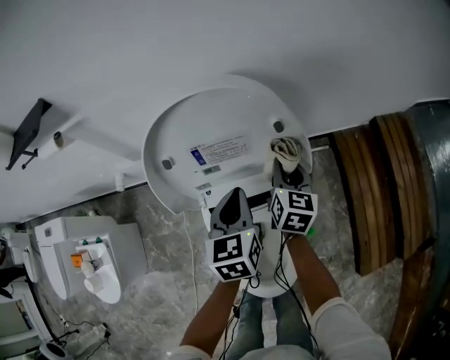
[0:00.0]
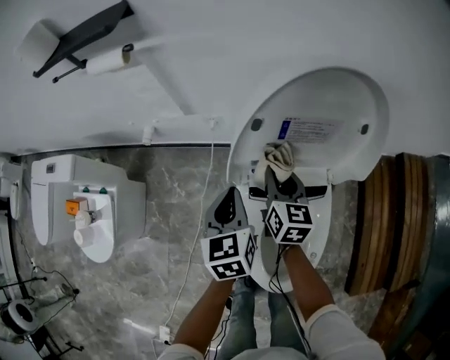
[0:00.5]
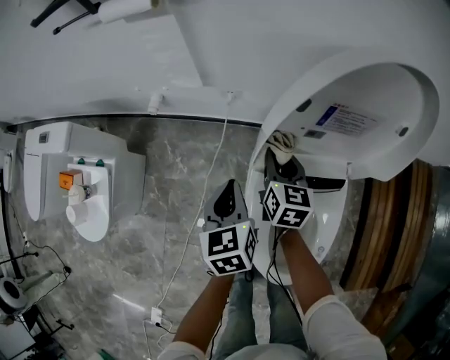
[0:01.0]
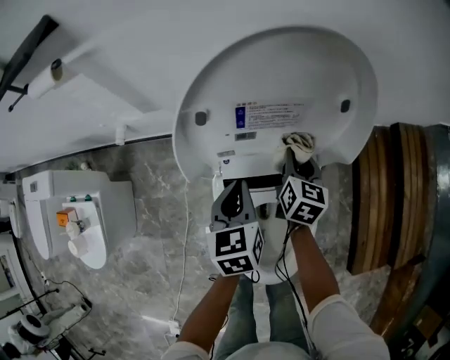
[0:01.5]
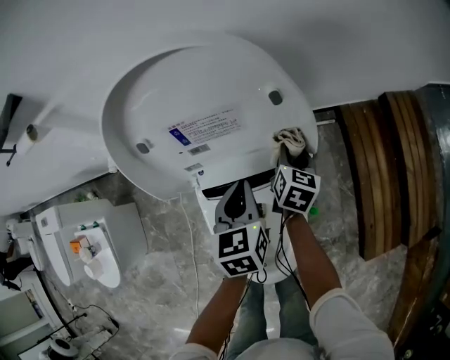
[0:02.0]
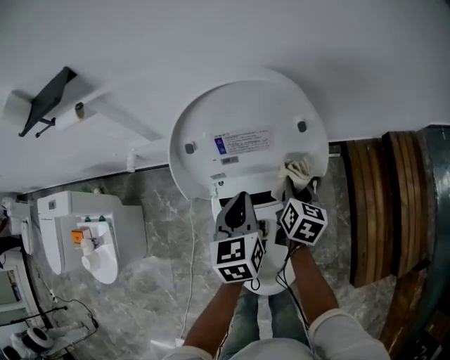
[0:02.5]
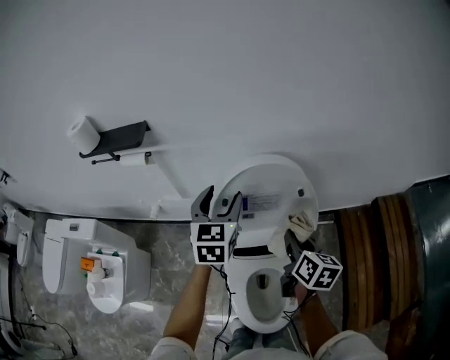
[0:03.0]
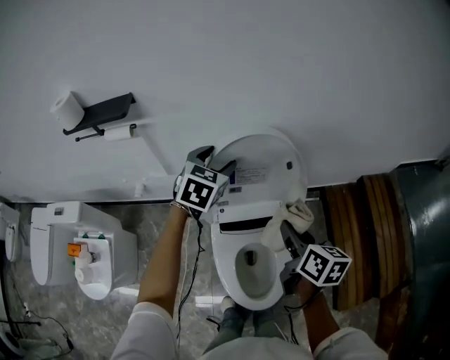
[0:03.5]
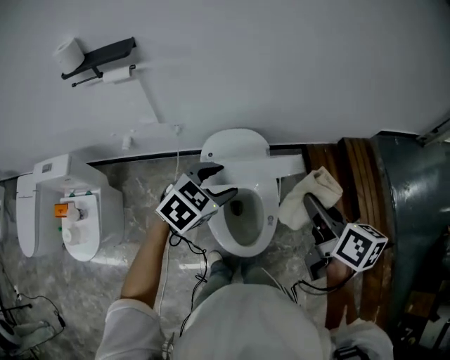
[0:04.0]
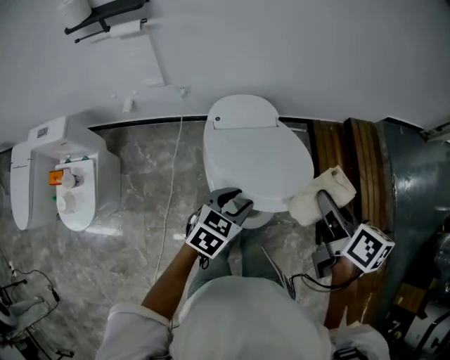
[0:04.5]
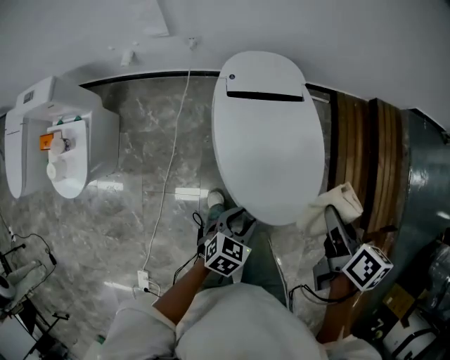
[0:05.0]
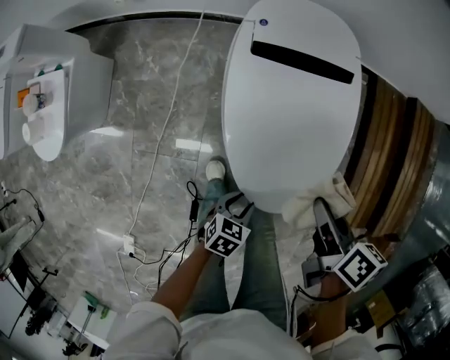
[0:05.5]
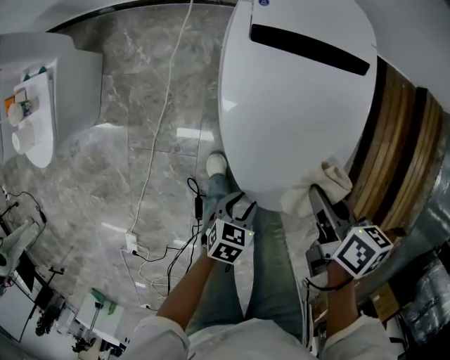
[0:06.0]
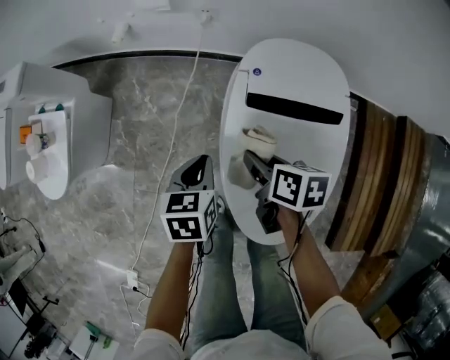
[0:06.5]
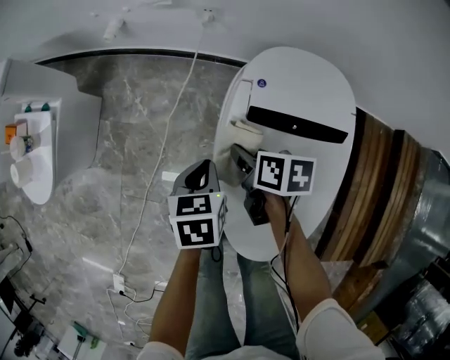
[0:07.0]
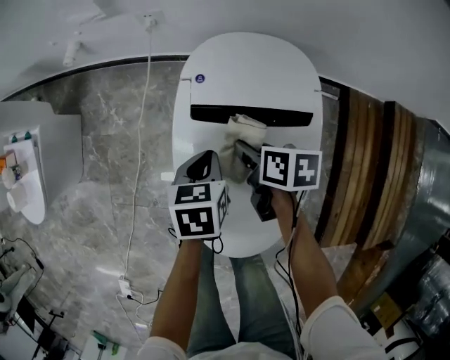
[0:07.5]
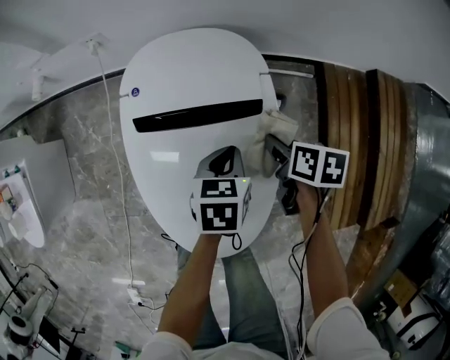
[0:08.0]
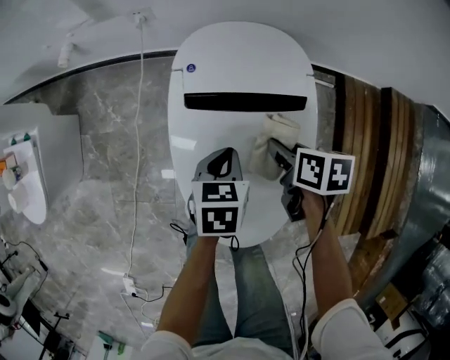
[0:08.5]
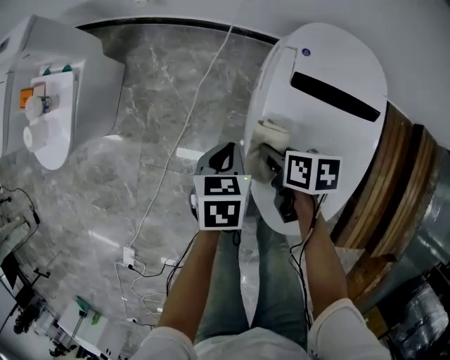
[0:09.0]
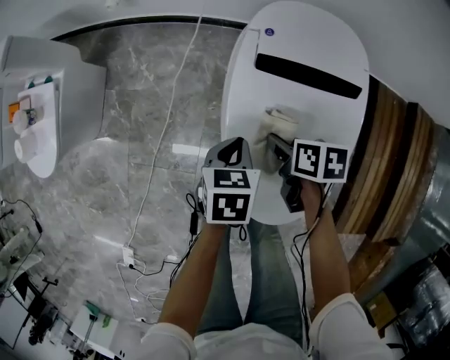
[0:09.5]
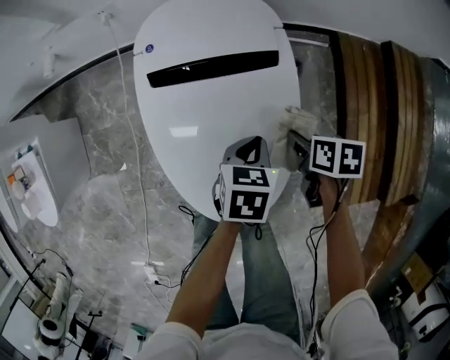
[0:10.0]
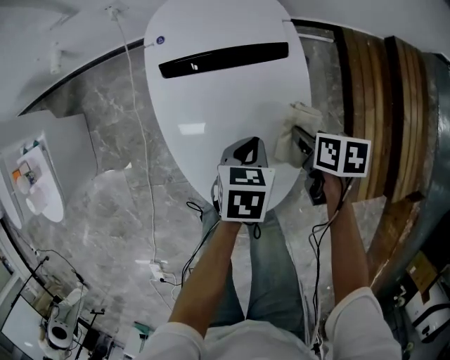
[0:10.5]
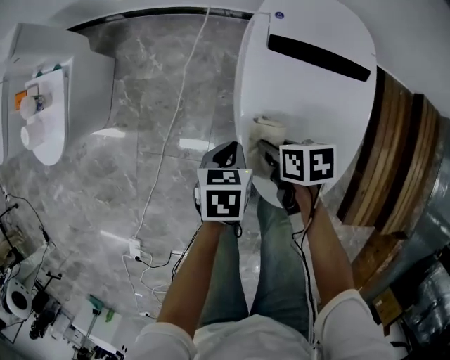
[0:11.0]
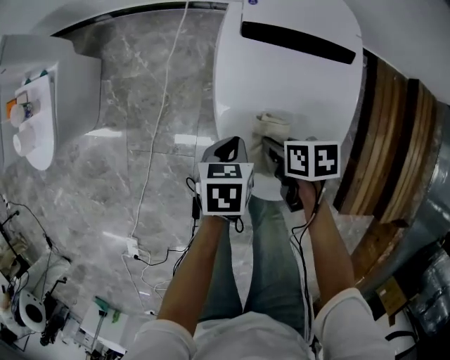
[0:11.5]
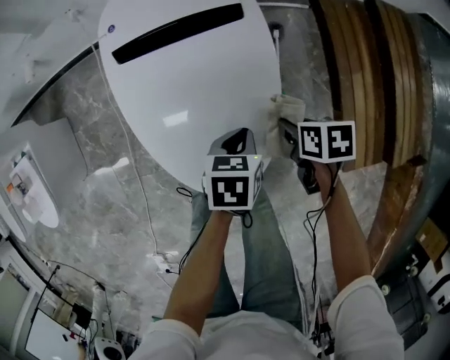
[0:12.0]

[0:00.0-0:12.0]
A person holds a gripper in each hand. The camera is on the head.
0:00.0 to 0:02.0: The left gripper is displaced downward by about 5 cm, and goes to the left and returns, approximately 25 cm each way. The right gripper shifts roughly 10 cm downward, and travels to the left and back again, about 30 cm each way.
0:02.0 to 0:04.0: The right gripper goes about 50 cm upward and backward, and turns by about 30 degrees. Meanwhile the left gripper moves upward and backward, roughly 30 cm, rotates approximately 50 degrees, and opens its fingers.
0:04.0 to 0:06.0: The left gripper shifts roughly 50 cm downward and backward, rolls counterclockwise, seen from behind, by some 50 degrees, and closes its fingers; the right gripper is displaced downward by roughly 40 cm, and turns by some 30 degrees.
0:06.0 to 0:08.0: The left gripper changes place by approximately 35 cm, and closes its fingers; the right gripper moves roughly 25 cm.

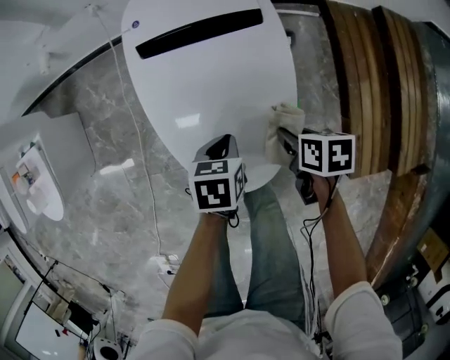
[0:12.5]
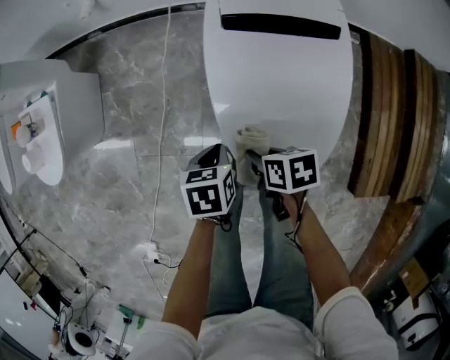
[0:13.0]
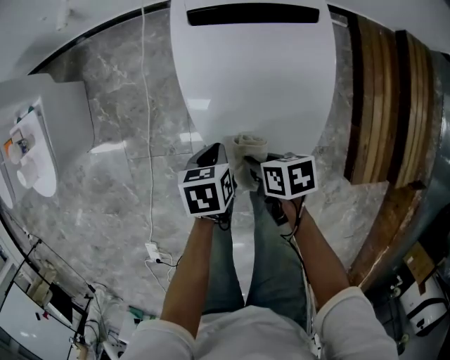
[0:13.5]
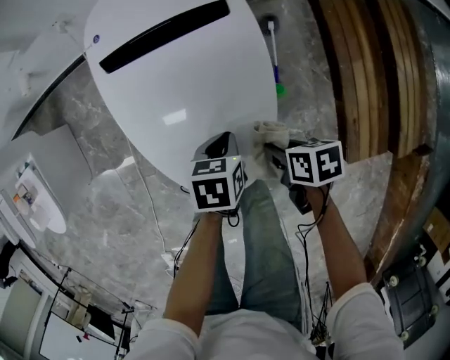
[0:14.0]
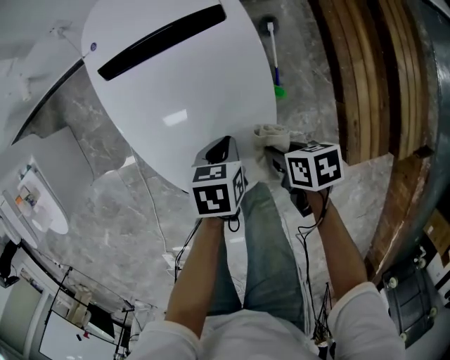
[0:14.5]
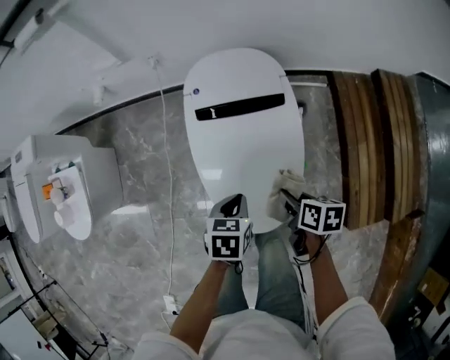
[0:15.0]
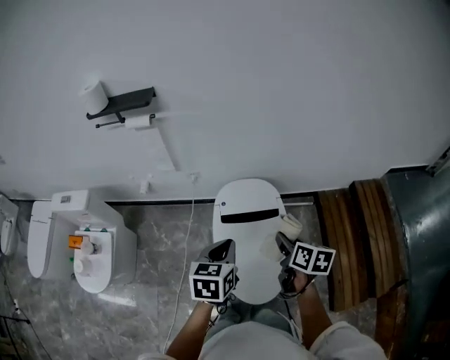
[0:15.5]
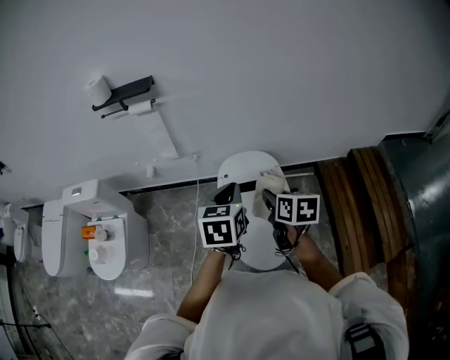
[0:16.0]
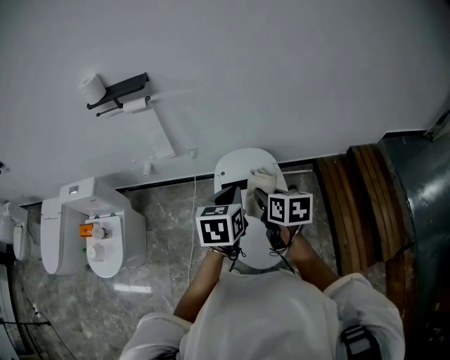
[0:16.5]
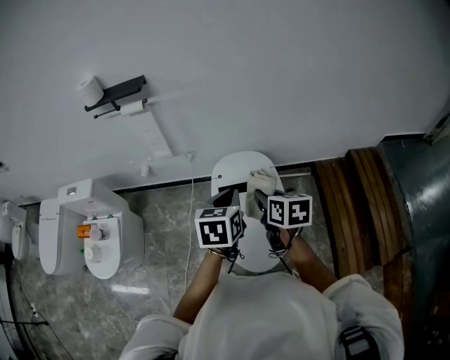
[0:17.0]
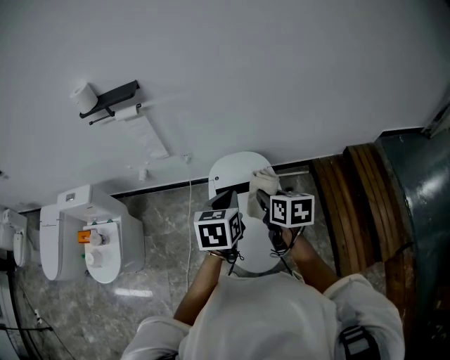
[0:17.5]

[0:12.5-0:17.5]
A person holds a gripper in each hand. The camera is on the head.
0:12.5 to 0:15.0: The left gripper goes left and right, roughly 25 cm each way, reversing 2 times. Meanwhile the right gripper swings left and right, about 25 cm each way, with 2 reversals.
0:15.0 to 0:17.5: Both grippers travel together upward, roughly 35 cm. The left gripper swivels some 30 degrees; the right gripper turns by about 30 degrees.

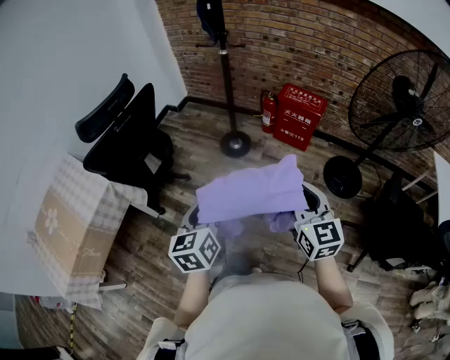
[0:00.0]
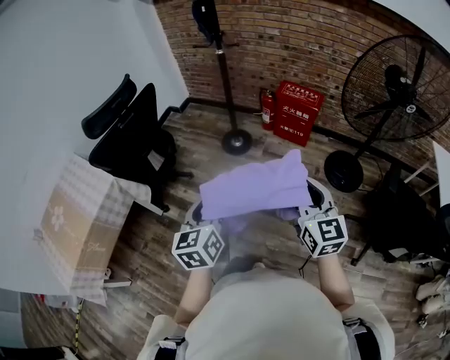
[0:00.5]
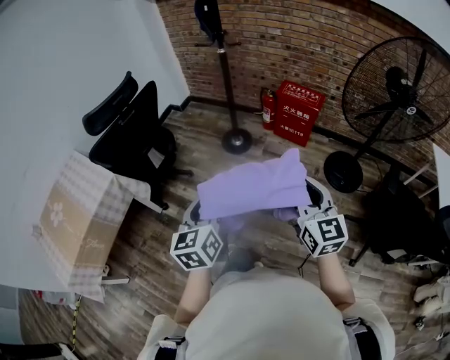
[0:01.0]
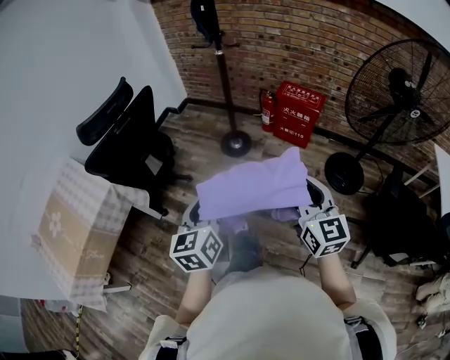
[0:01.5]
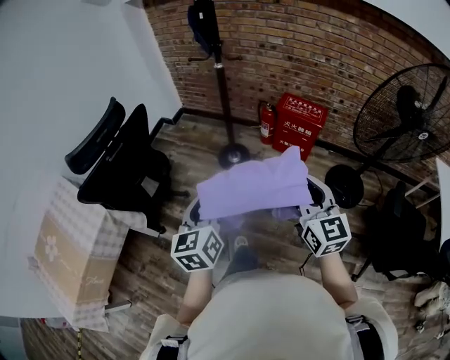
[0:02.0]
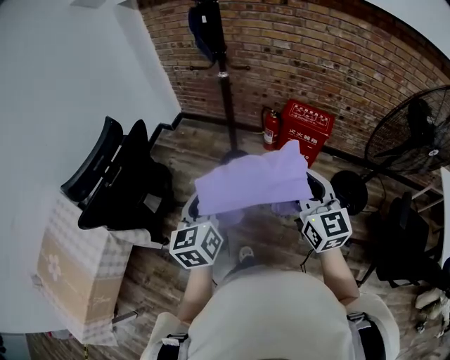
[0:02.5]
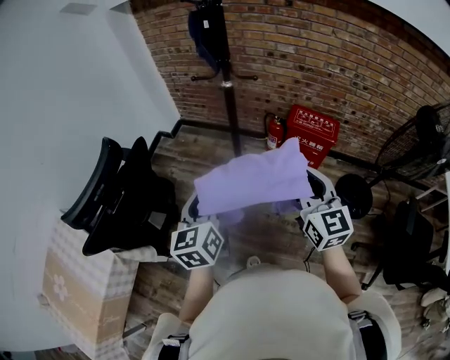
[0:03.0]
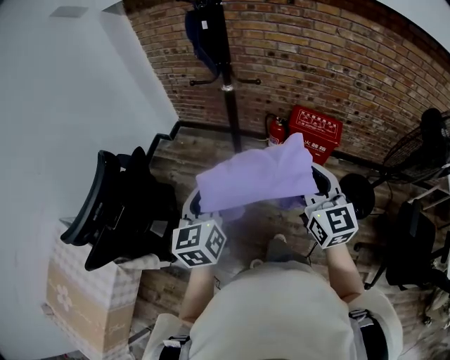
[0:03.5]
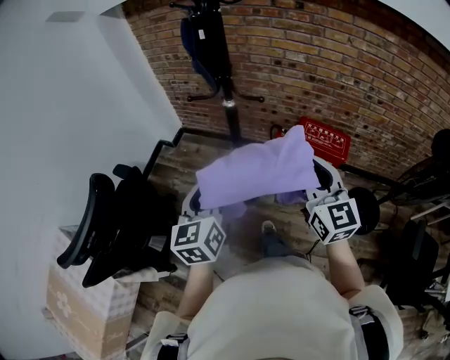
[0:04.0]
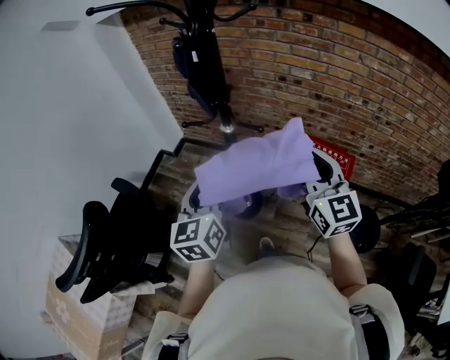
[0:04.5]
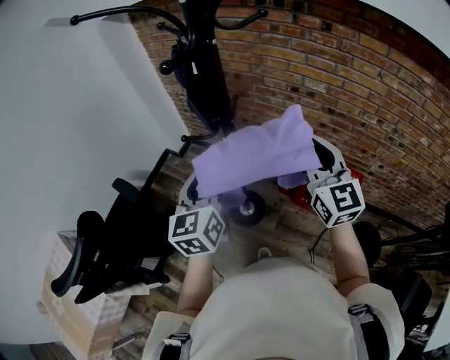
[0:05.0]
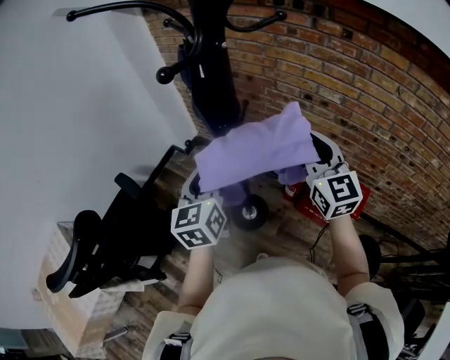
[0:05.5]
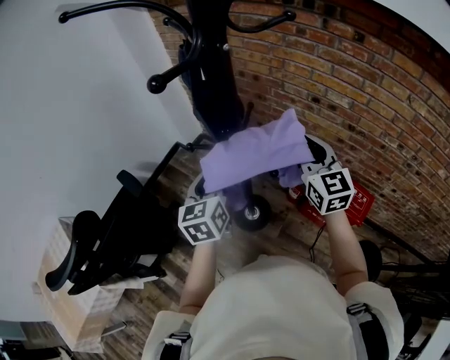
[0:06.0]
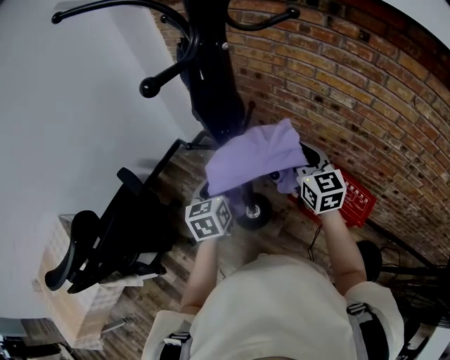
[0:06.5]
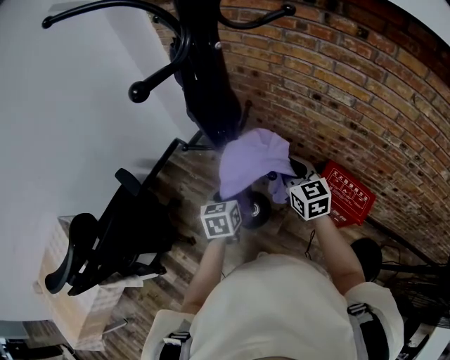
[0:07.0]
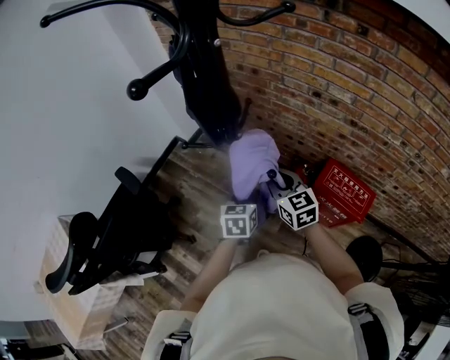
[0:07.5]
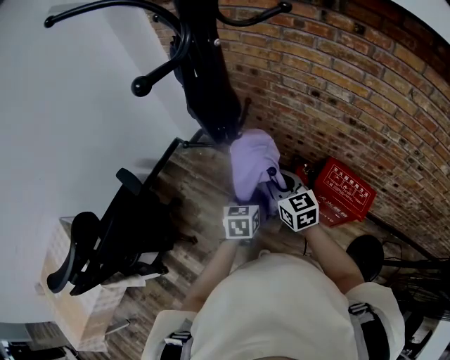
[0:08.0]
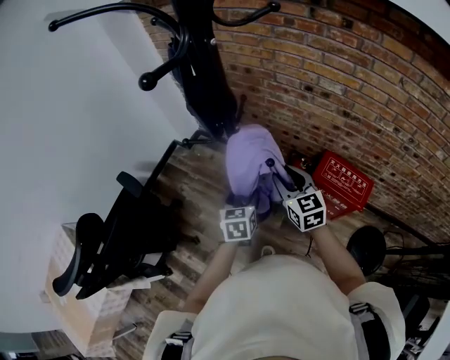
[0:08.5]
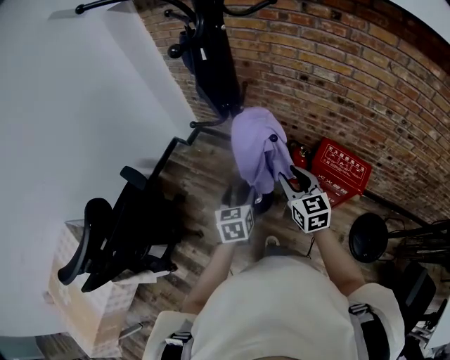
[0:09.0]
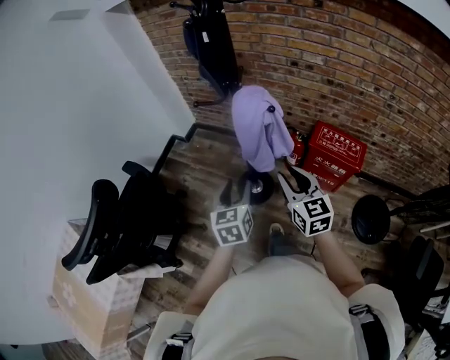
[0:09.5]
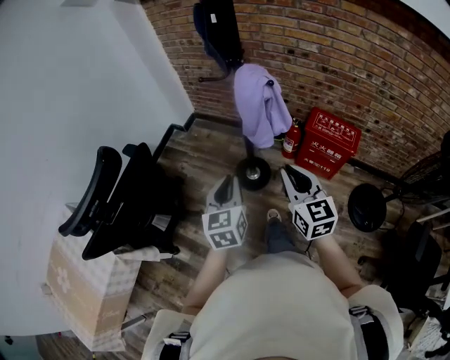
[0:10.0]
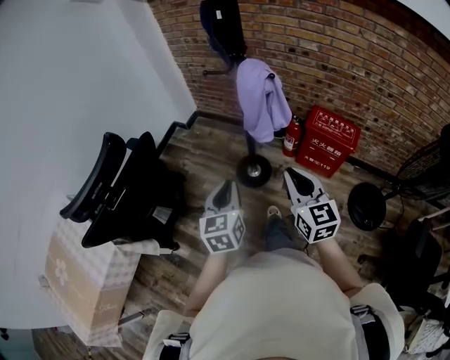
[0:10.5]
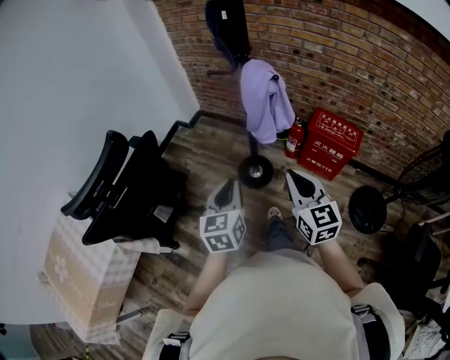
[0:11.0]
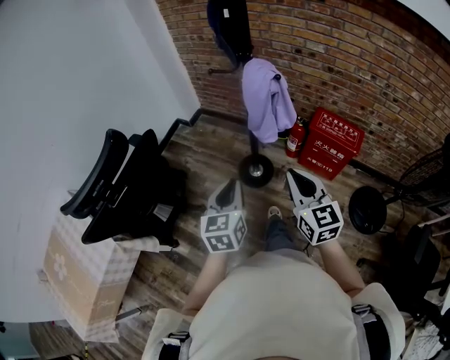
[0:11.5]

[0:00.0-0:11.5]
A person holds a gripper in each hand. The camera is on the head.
0:00.0 to 0:02.0: Both grippers move forward, about 10 cm.
0:02.0 to 0:04.0: Both grippers travel together forward, approximately 35 cm.
0:04.0 to 0:06.0: The two grippers go roughly 30 cm forward.
0:06.0 to 0:07.5: The right gripper goes roughly 15 cm downward and to the left. The left gripper goes some 20 cm downward and to the right, and changes its angle by some 20 degrees.
0:07.5 to 0:09.5: The right gripper shifts roughly 20 cm backward; the left gripper is displaced backward, to the left and upward by roughly 20 cm, and opens.
0:09.5 to 0:11.5: Both grippers travel together backward, approximately 15 cm. The left gripper closes. Meanwhile the right gripper closes its fingers.
